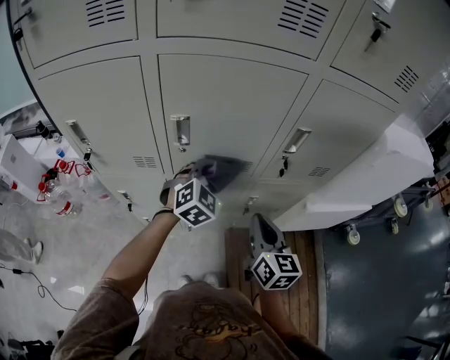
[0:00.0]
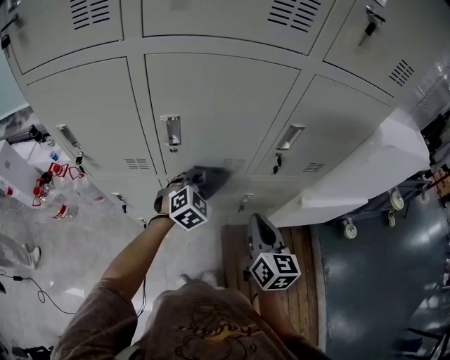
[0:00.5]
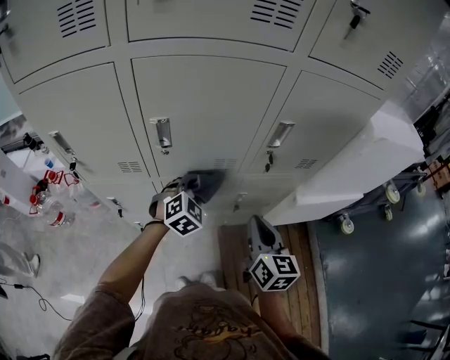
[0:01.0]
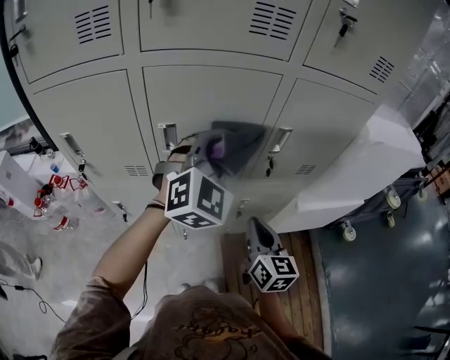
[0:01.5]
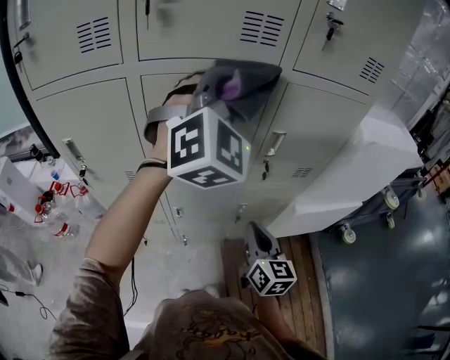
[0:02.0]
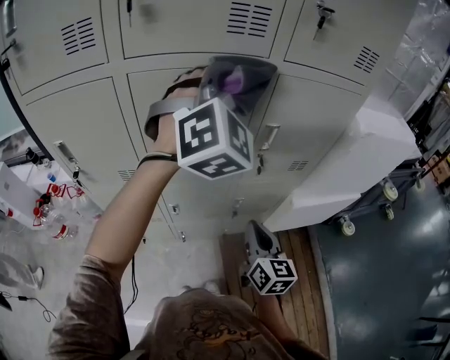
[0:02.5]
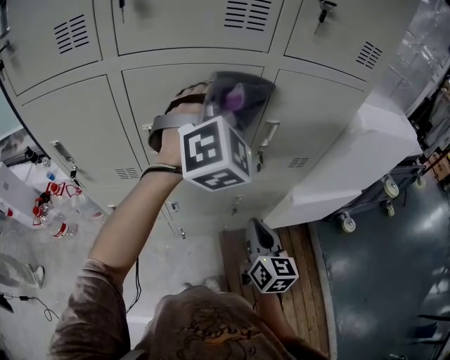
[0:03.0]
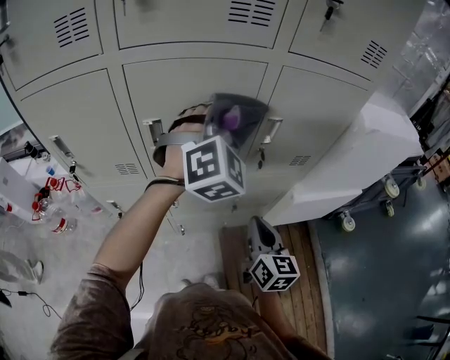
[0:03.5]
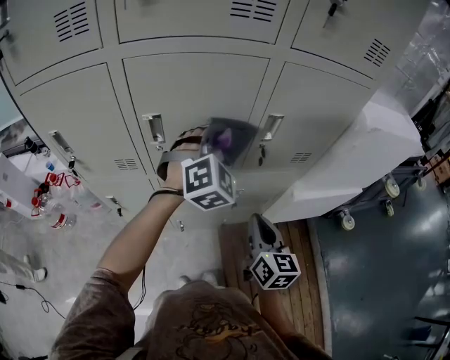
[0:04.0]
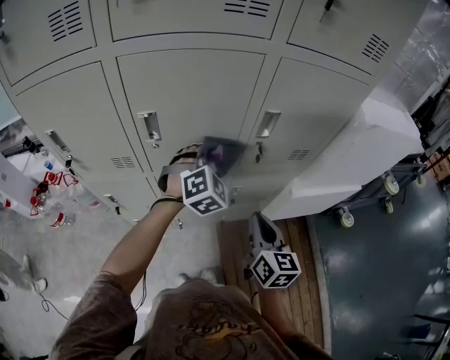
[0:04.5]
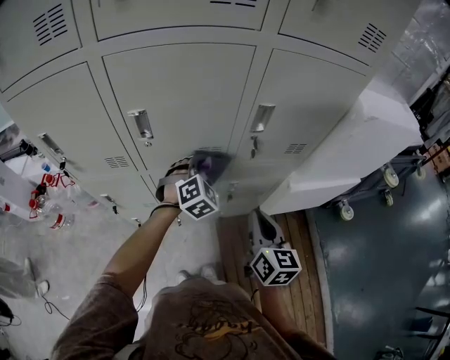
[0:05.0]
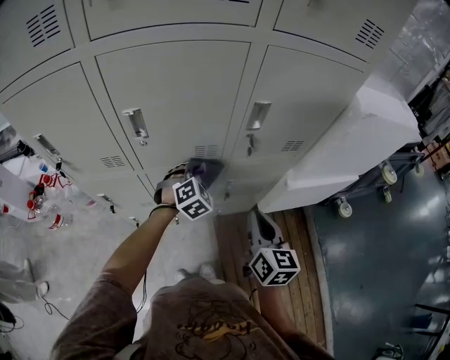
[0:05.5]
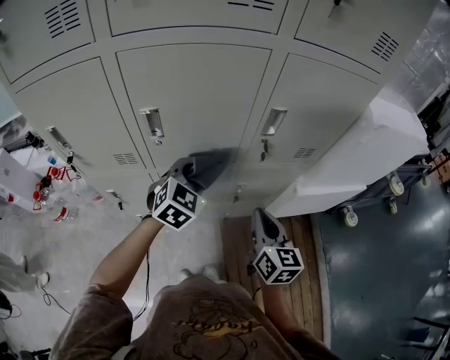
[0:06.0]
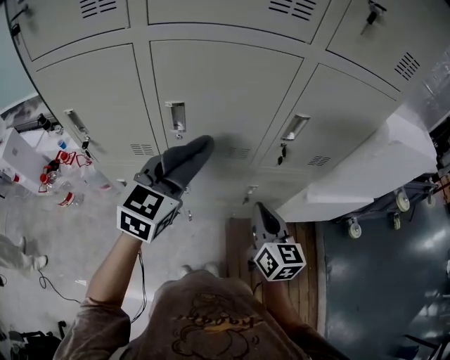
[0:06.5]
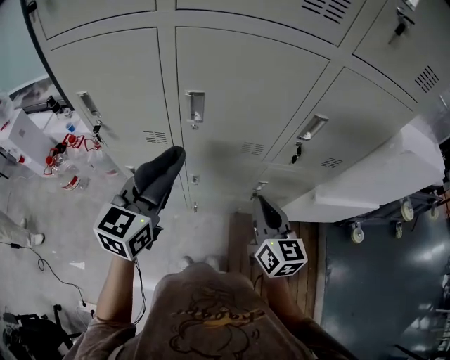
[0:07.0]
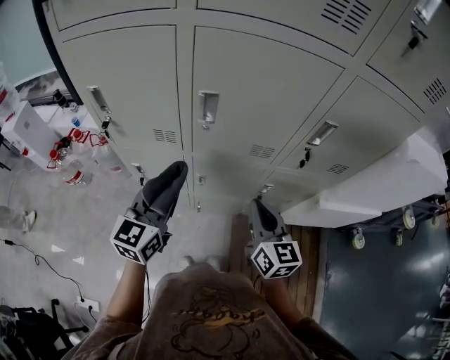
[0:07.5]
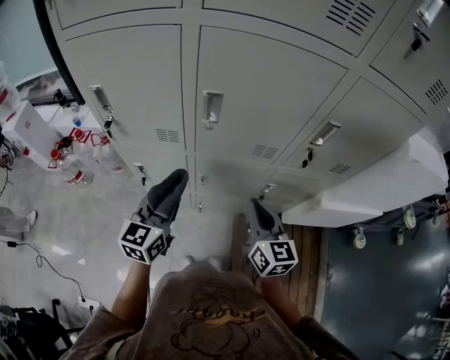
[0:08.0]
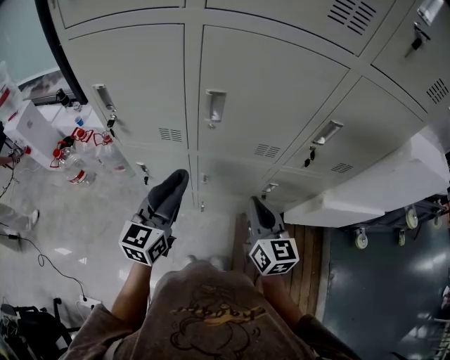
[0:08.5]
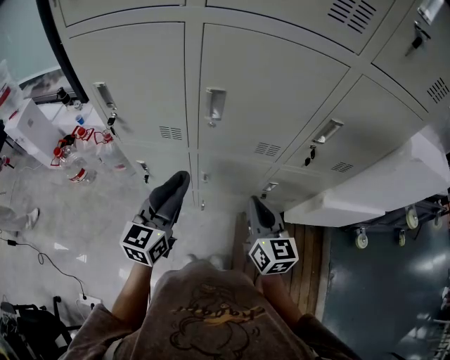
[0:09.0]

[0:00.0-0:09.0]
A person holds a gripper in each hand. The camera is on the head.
0:00.0 to 0:02.0: The left gripper shifts some 35 cm upward, and turns by roughly 40 degrees.
0:02.0 to 0:04.5: The left gripper is displaced downward by some 30 cm, and changes its angle by some 30 degrees.
0:04.5 to 0:07.0: The right gripper moves to the left, roughly 10 cm; the left gripper is displaced to the left and backward by roughly 25 cm, and rolls counterclockwise, seen from behind, by approximately 60 degrees.
0:07.0 to 0:09.0: The right gripper changes place by roughly 5 cm, while the left gripper travels downward by some 10 cm.

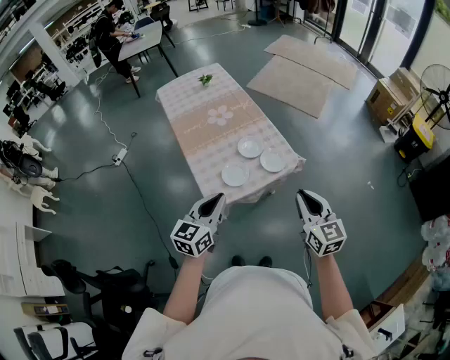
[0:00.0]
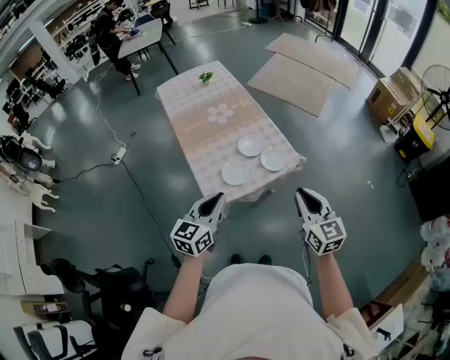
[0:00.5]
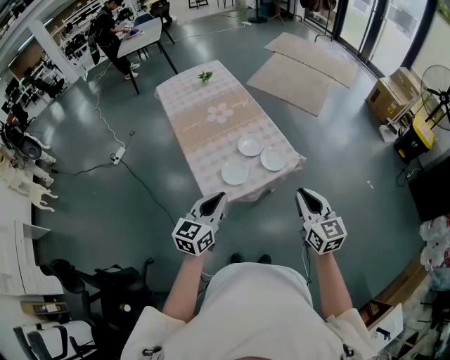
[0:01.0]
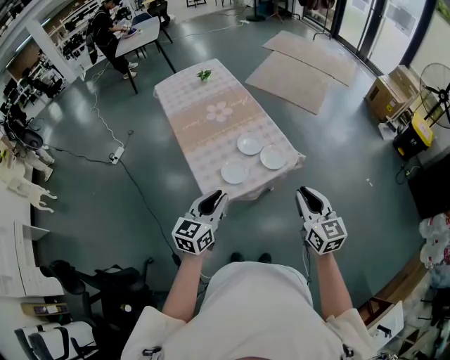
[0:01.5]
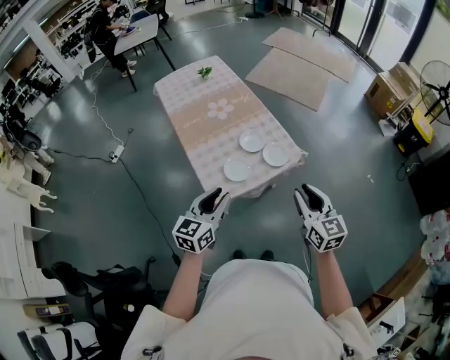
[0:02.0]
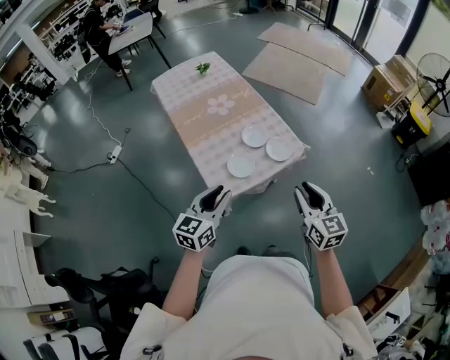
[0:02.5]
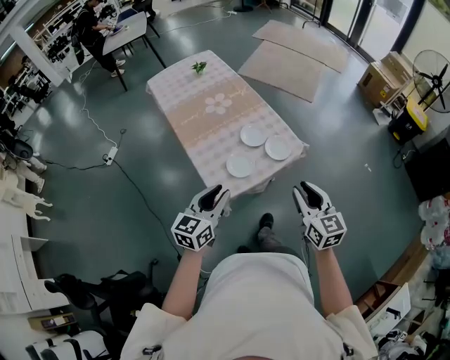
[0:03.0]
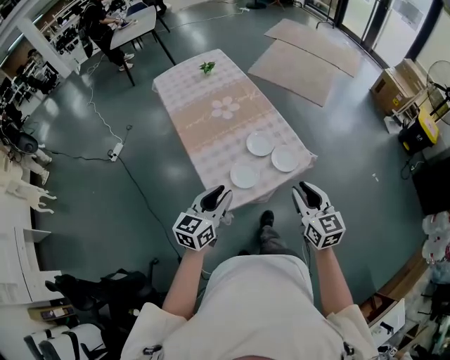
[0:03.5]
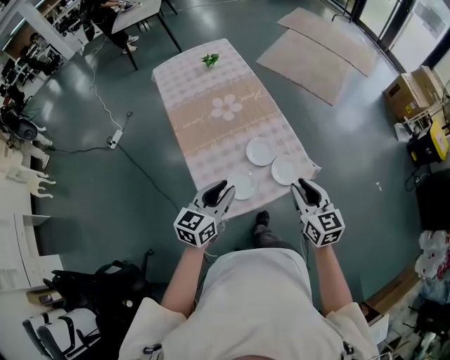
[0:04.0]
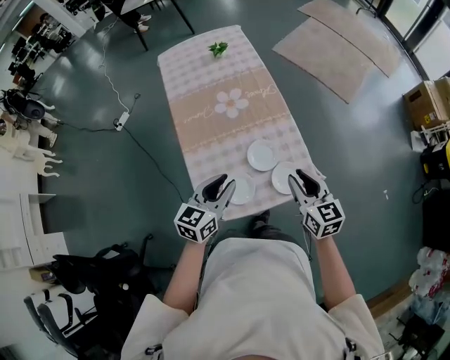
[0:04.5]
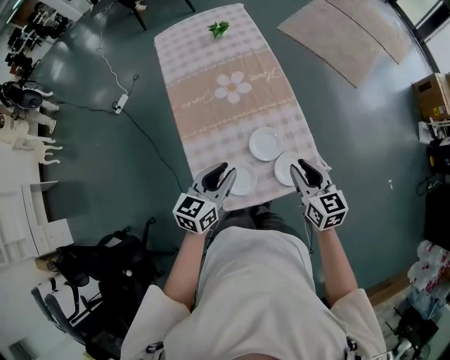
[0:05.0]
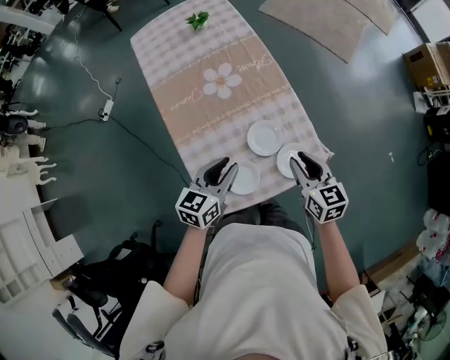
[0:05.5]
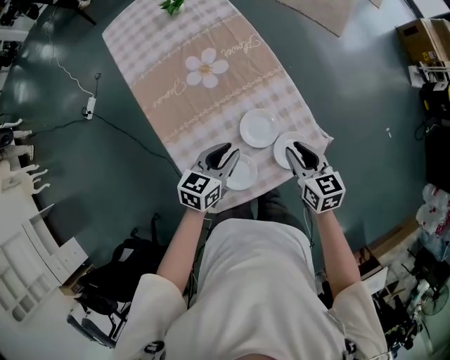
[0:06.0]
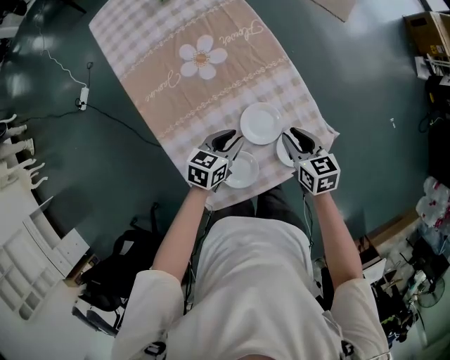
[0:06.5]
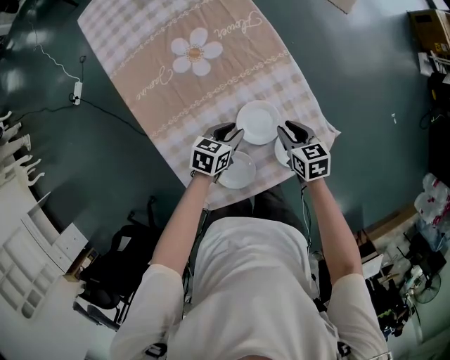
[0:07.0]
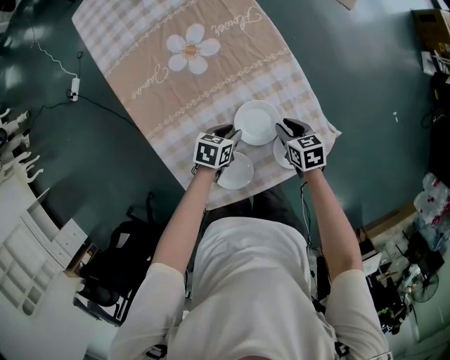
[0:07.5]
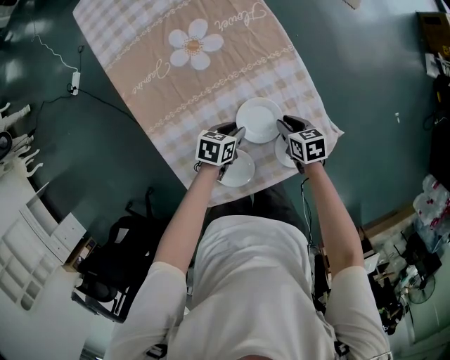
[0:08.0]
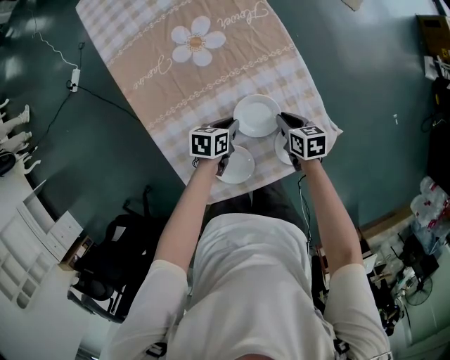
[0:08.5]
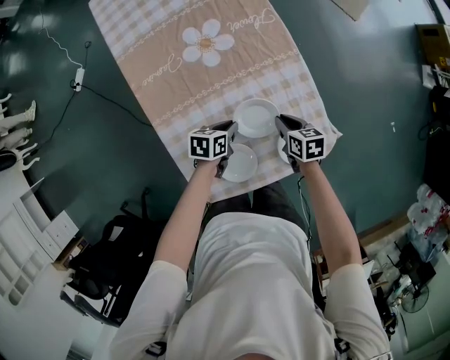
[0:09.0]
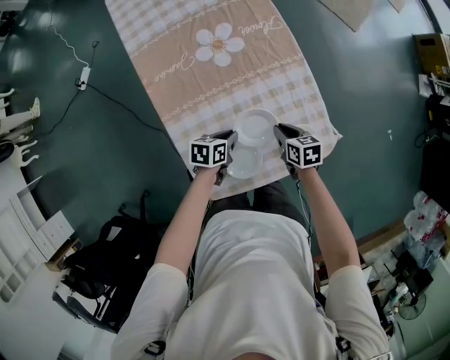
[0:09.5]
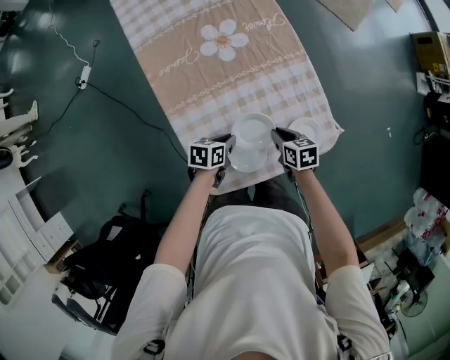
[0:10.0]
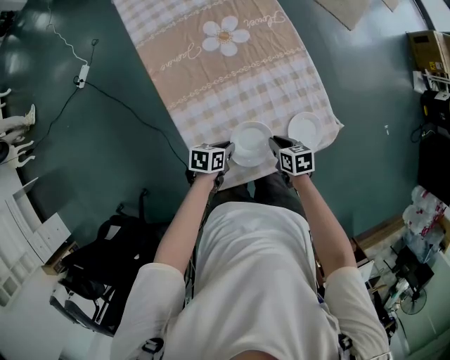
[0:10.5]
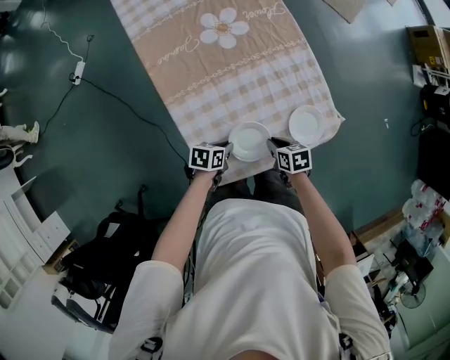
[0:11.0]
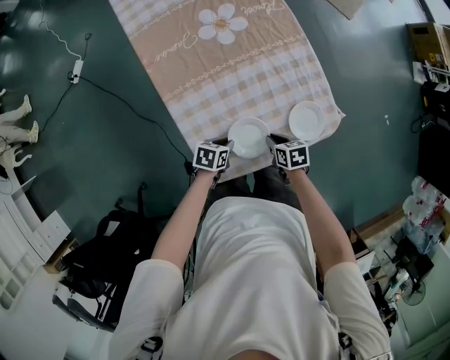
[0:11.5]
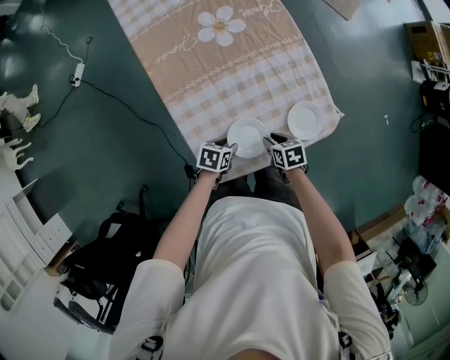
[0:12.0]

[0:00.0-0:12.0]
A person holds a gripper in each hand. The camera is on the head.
0:00.0 to 0:02.0: The left gripper opens.
0:02.0 to 0:04.0: Both grippers move forward, roughly 20 cm.
0:04.0 to 0:06.0: Both grippers move forward and downward, roughly 25 cm. The left gripper rotates approximately 20 degrees. The right gripper rotates some 20 degrees.
0:06.0 to 0:08.0: Both grippers travel together downward, roughly 25 cm. The left gripper turns by roughly 30 degrees. The right gripper swivels approximately 30 degrees.
0:08.0 to 0:10.0: The right gripper moves roughly 10 cm. The left gripper moves about 15 cm, and closes its fingers.
0:10.0 to 0:12.0: The right gripper ends up about 10 cm from where it was, while the left gripper shifts by roughly 10 cm, and opens its fingers.

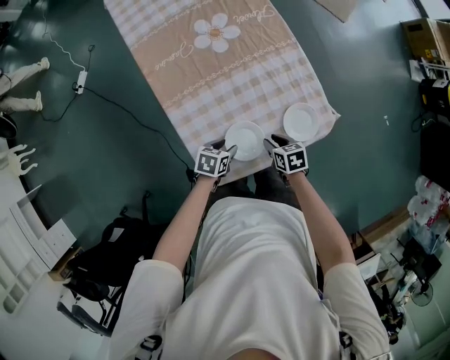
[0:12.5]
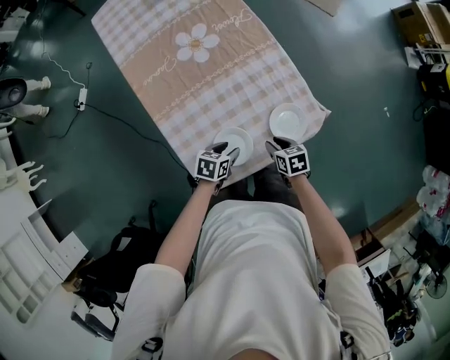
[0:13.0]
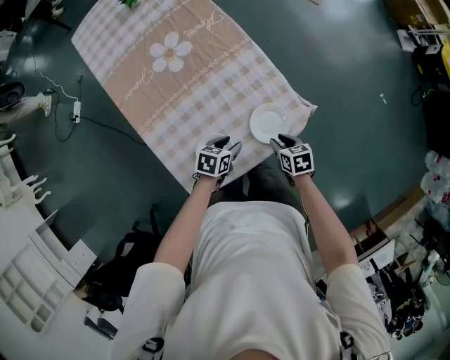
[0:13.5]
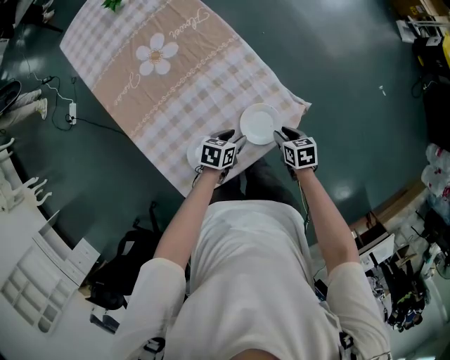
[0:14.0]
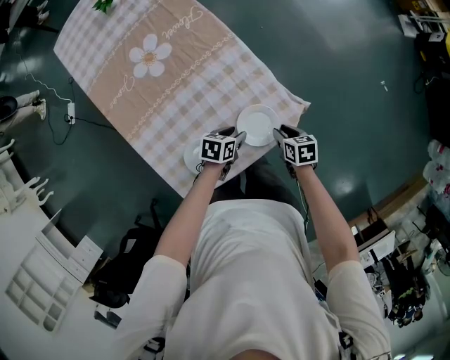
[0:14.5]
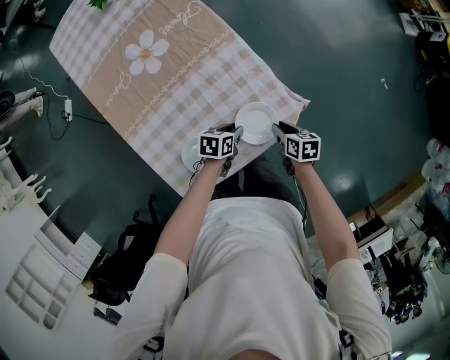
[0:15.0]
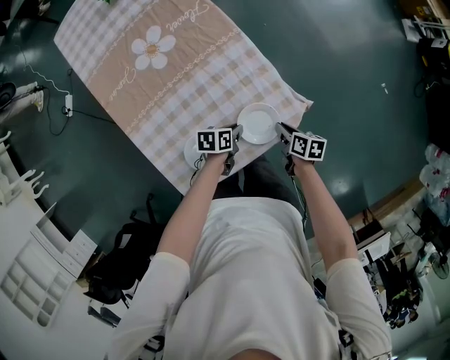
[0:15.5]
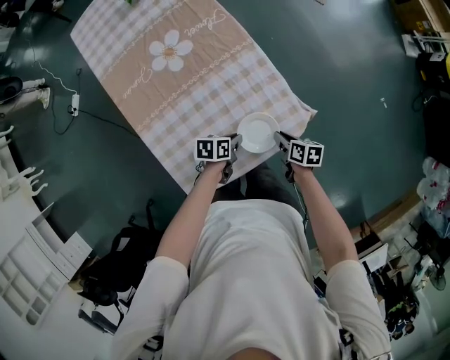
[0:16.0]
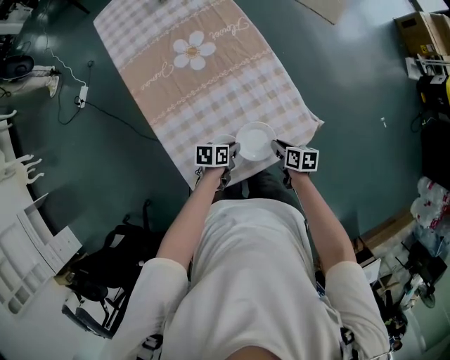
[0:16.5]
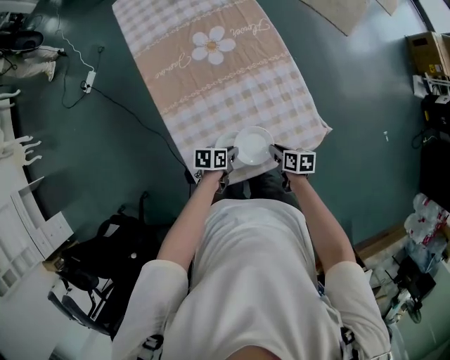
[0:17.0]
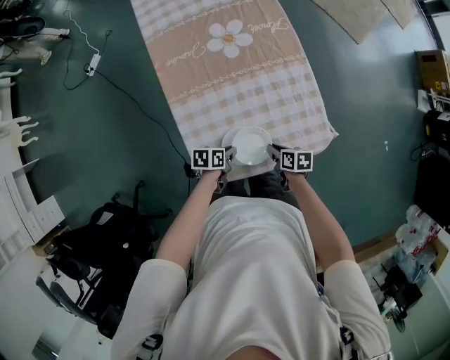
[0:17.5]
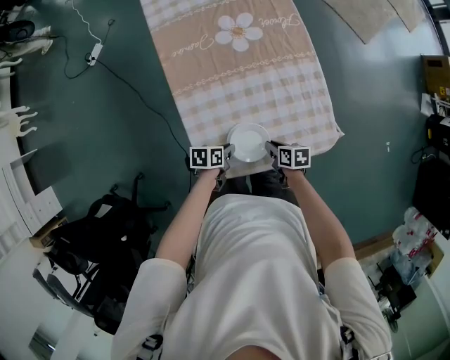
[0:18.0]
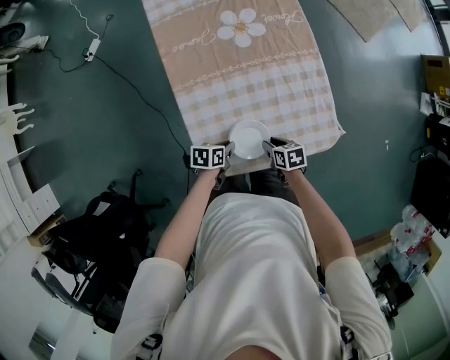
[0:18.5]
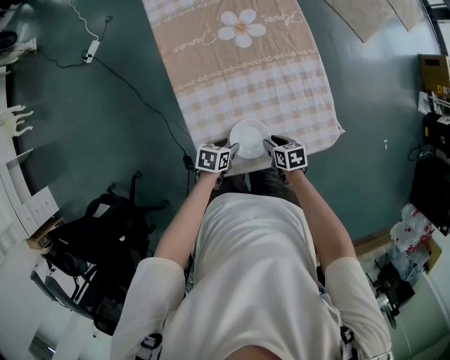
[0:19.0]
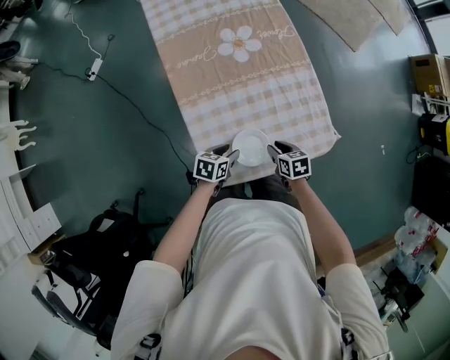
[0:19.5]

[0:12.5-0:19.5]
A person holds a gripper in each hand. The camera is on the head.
0:12.5 to 0:14.5: The left gripper shifts by some 25 cm. Meanwhile the right gripper changes place by about 20 cm.
0:14.5 to 0:16.0: The left gripper moves roughly 5 cm, and closes its fingers.
0:16.0 to 0:17.5: The left gripper moves roughly 15 cm; the right gripper changes place by approximately 15 cm, and turns by about 20 degrees.
0:17.5 to 0:19.5: The right gripper moves approximately 5 cm, and turns by some 20 degrees. The left gripper ends up roughly 5 cm from where it was, swivels some 20 degrees, and opens up.
